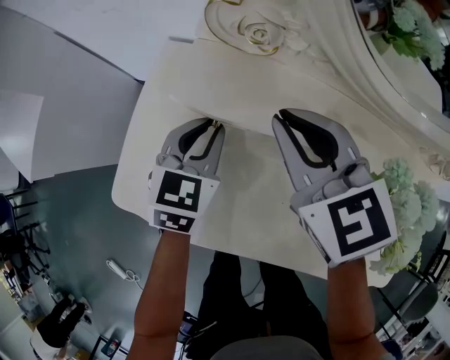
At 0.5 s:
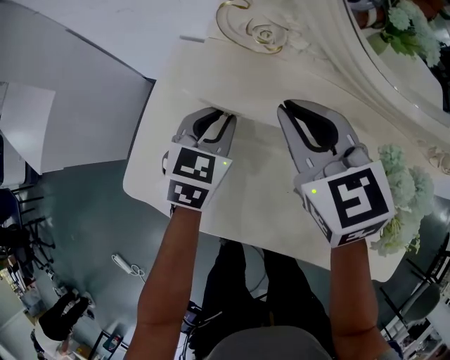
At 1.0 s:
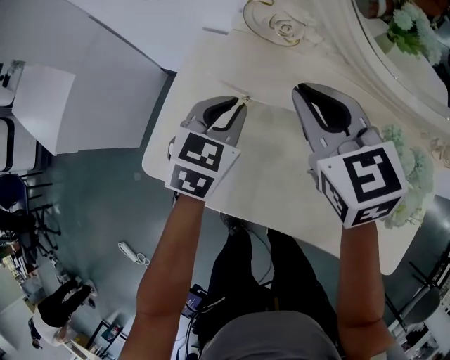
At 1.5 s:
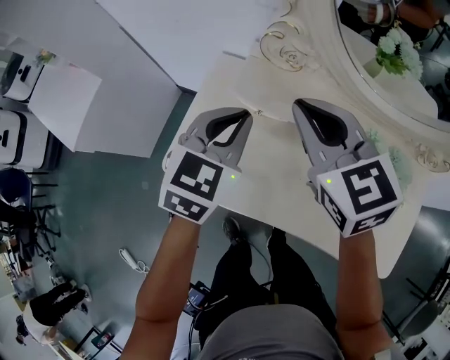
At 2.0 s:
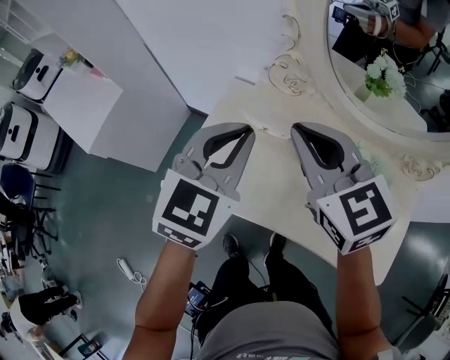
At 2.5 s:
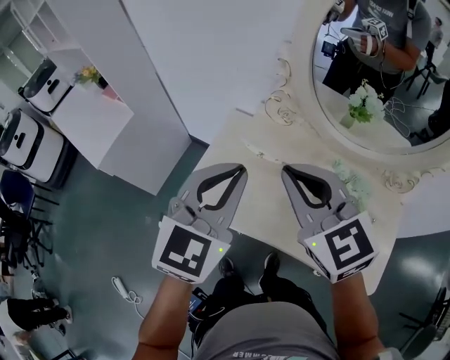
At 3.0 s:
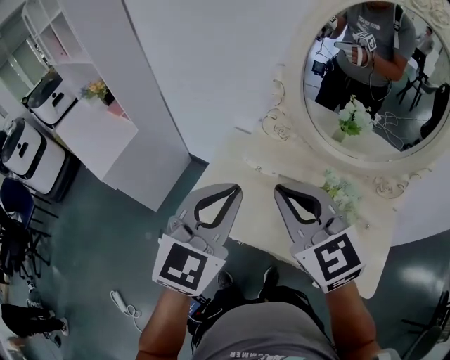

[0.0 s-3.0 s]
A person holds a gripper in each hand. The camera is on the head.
0.0 to 1.5 s: The two grippers go roughly 15 cm upward.
1.5 to 3.0 s: The right gripper travels backward and upward by some 25 cm. Meanwhile the left gripper is displaced upward and backward by approximately 30 cm, and rotates approximately 20 degrees.

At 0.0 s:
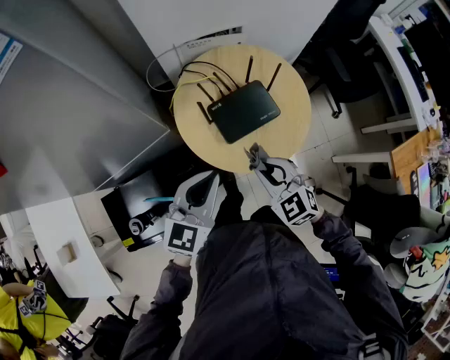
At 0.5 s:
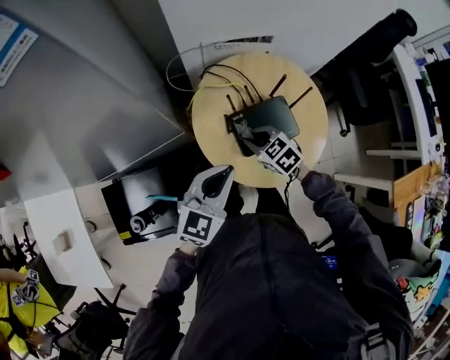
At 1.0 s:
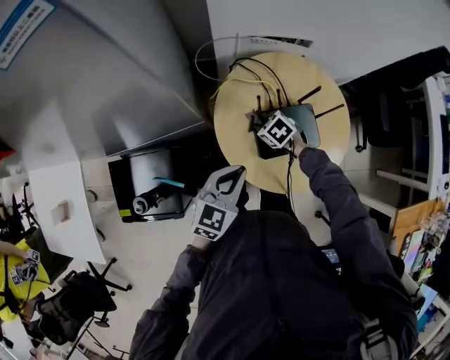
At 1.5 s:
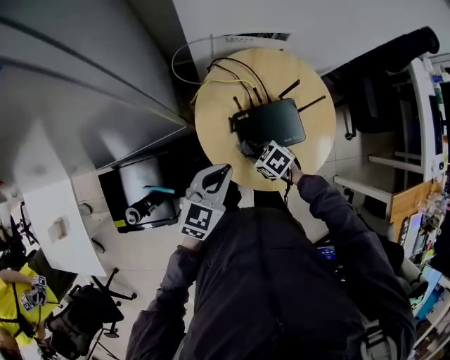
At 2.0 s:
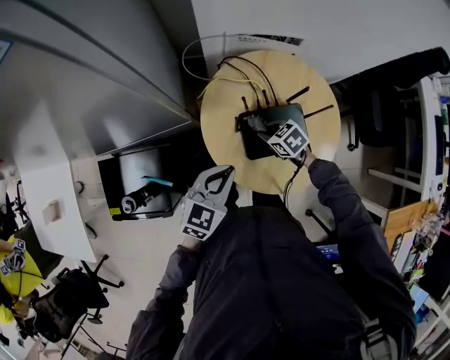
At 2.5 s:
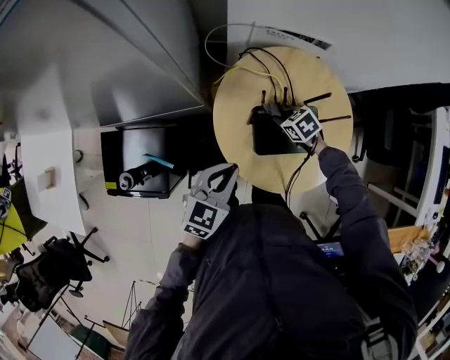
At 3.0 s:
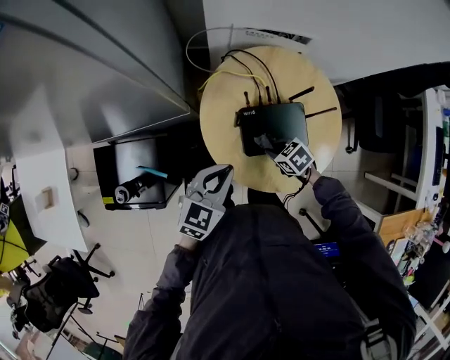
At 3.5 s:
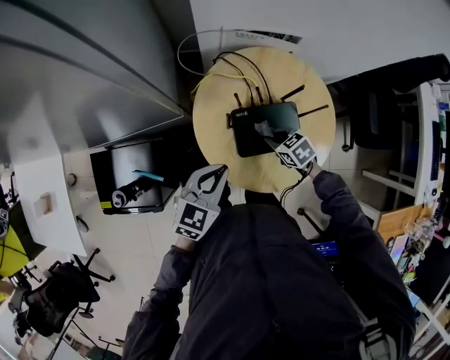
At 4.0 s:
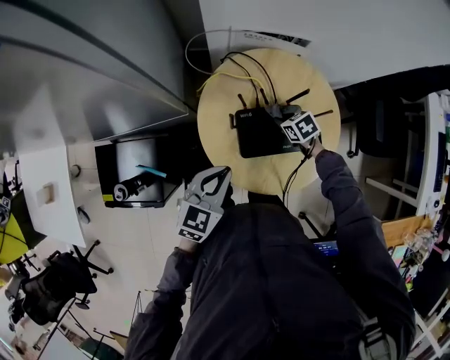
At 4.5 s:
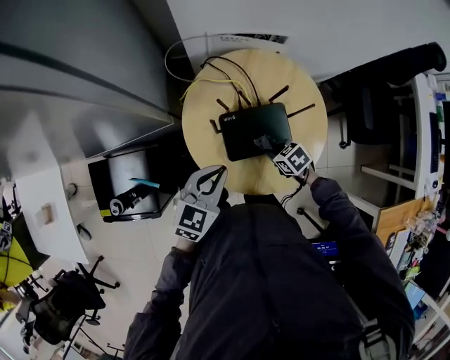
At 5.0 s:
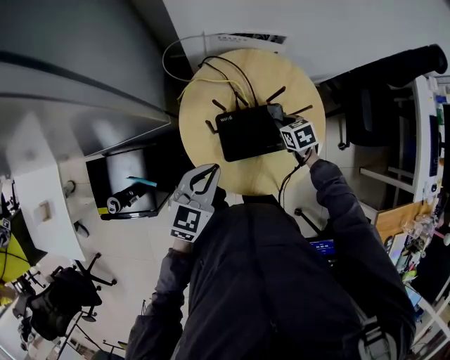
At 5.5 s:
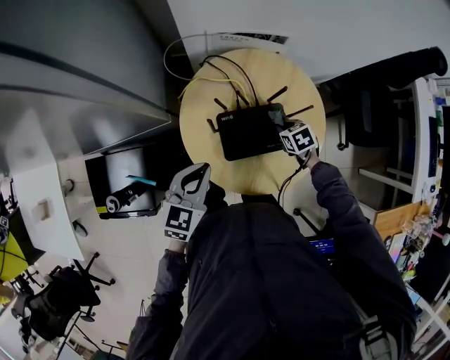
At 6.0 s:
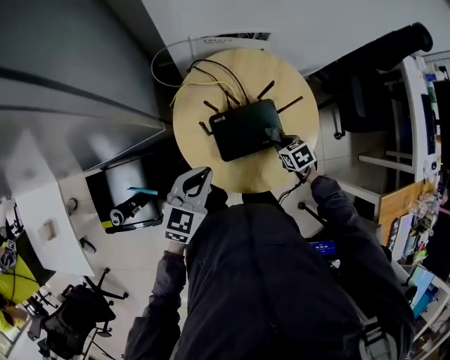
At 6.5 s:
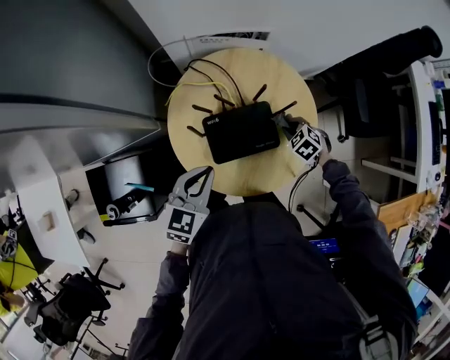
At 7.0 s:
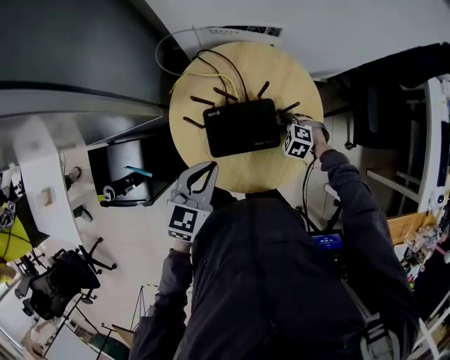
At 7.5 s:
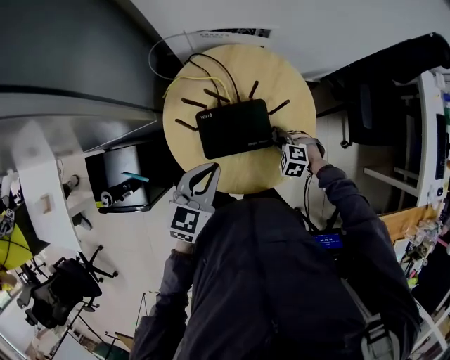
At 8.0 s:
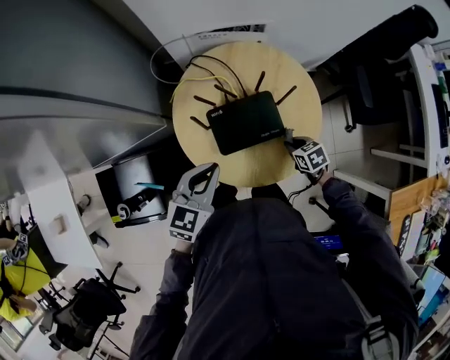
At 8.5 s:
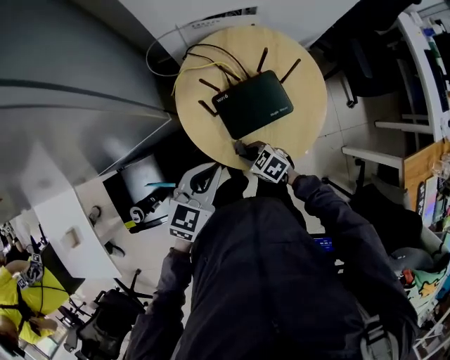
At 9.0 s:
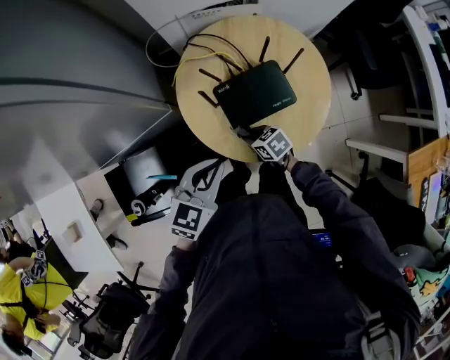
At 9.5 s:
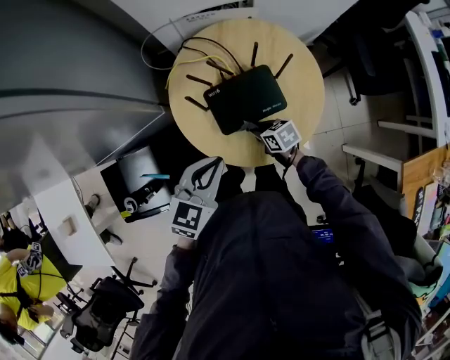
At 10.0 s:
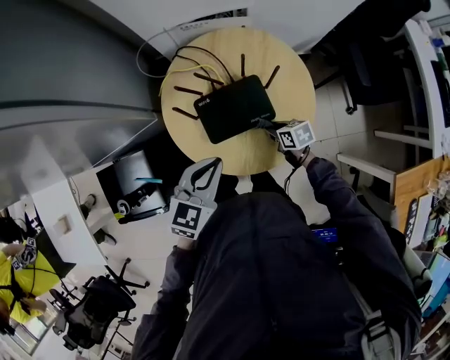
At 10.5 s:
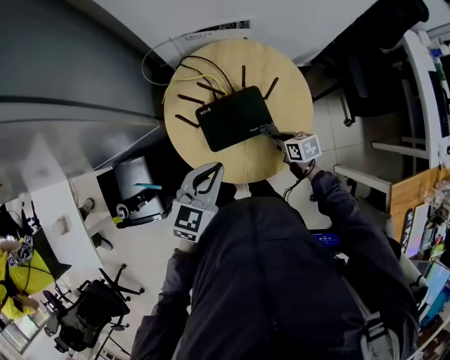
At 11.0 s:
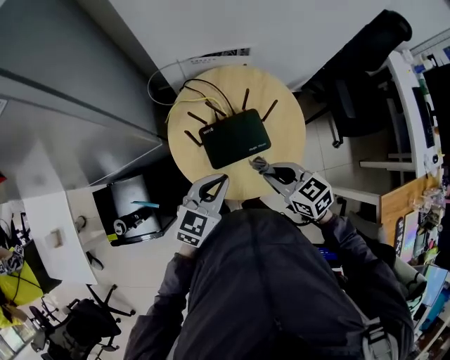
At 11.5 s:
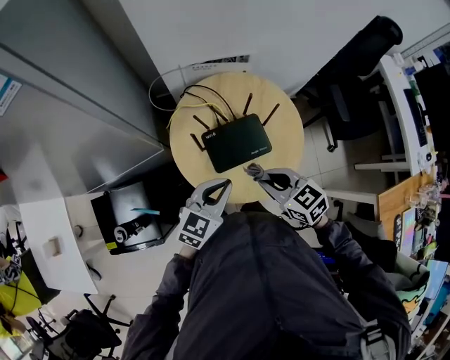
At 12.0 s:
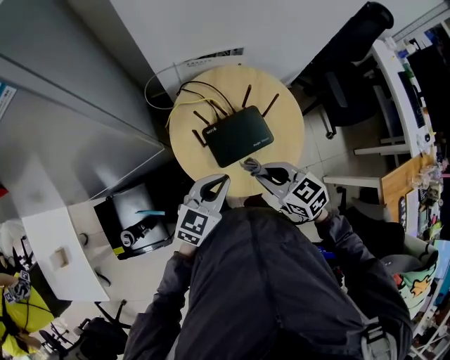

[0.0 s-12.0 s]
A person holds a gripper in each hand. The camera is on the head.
0.0 to 2.0 s: The left gripper shifts some 10 cm downward; the right gripper moves approximately 25 cm, and swivels approximately 40 degrees.
2.0 to 4.0 s: The right gripper changes place by some 10 cm.
4.0 to 6.0 s: The right gripper moves forward and backward over roughly 10 cm, changing direction 2 times.
8.0 to 10.0 s: The right gripper travels to the left and back again, some 25 cm each way.
10.0 to 12.0 s: The right gripper is displaced upward and to the left by roughly 25 cm, and swivels approximately 30 degrees.

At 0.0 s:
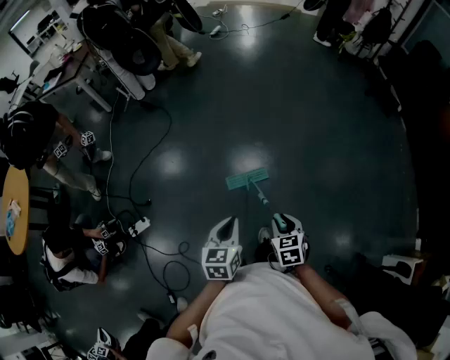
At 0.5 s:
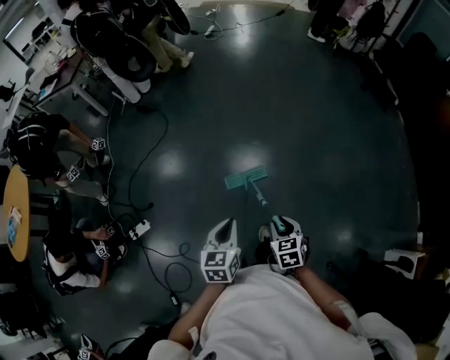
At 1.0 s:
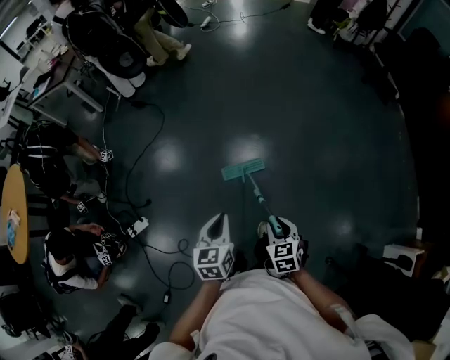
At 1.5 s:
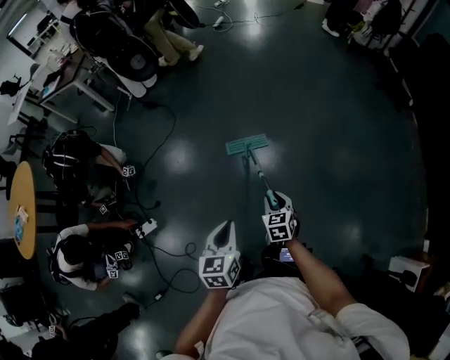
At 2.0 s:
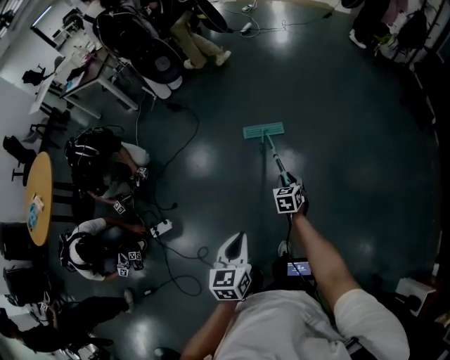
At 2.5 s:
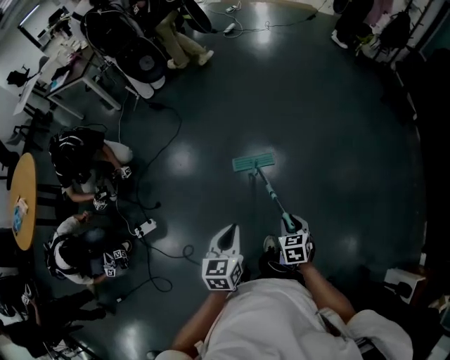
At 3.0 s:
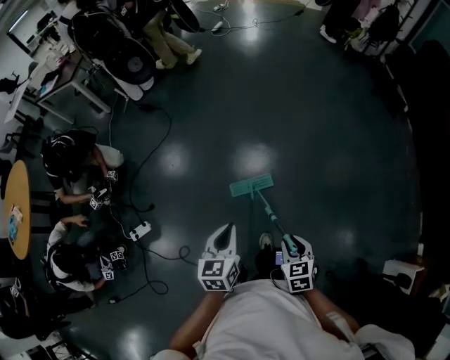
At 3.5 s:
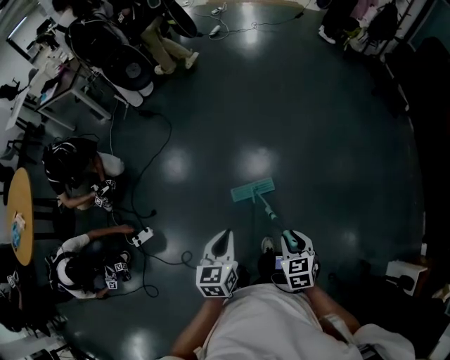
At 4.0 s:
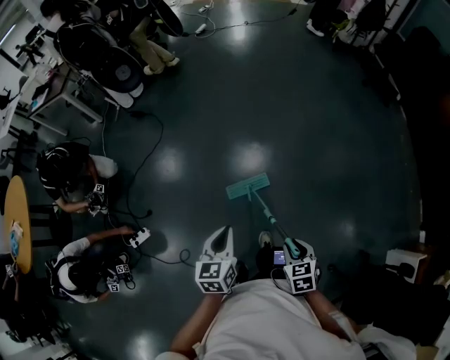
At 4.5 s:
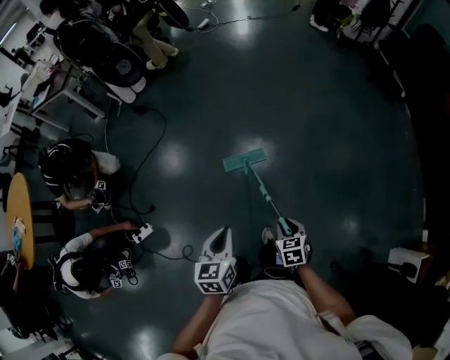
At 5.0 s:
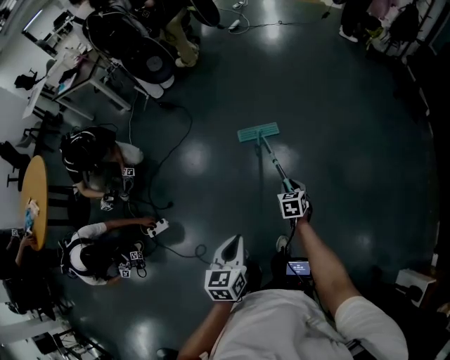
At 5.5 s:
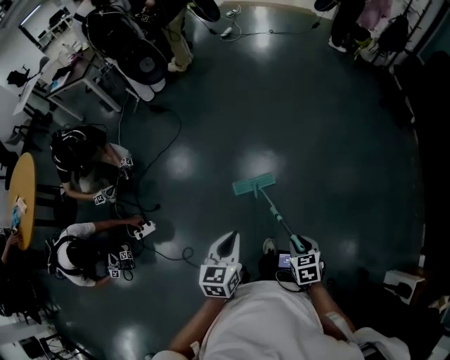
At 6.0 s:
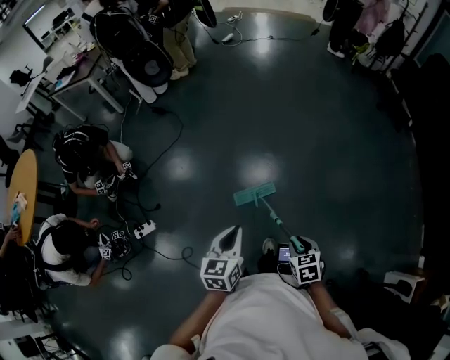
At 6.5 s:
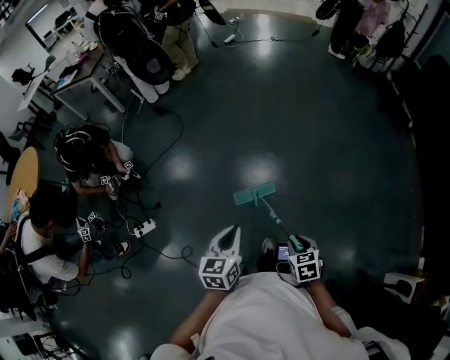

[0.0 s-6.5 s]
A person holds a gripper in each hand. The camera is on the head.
0.0 to 2.0 s: The right gripper shifts roughly 30 cm forward and downward, while the left gripper moves forward, roughly 5 cm.
2.0 to 4.5 s: The right gripper moves forward and backward over roughly 30 cm, changing direction 3 times.
4.5 to 6.5 s: The right gripper moves upward, roughly 5 cm, and reaches approximately 20 cm forward, then returns.

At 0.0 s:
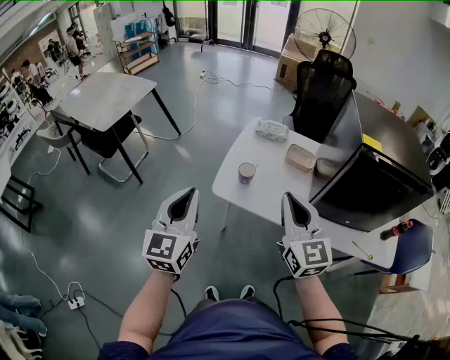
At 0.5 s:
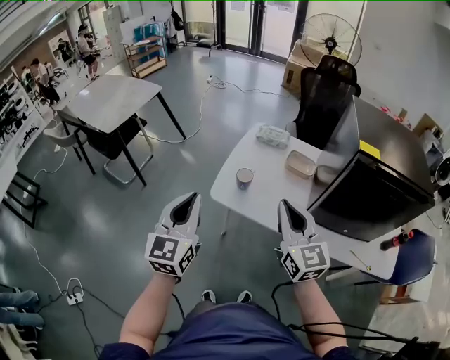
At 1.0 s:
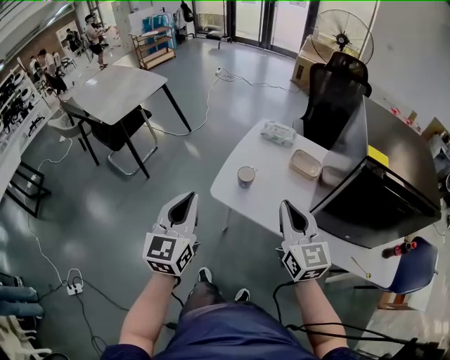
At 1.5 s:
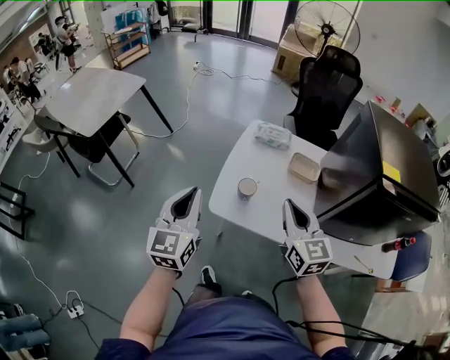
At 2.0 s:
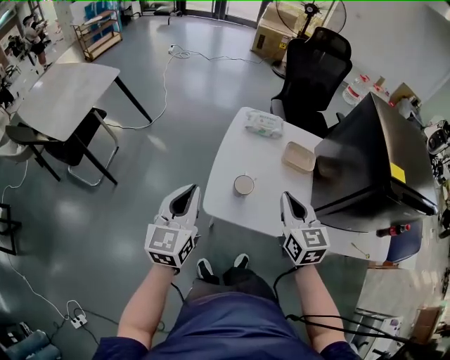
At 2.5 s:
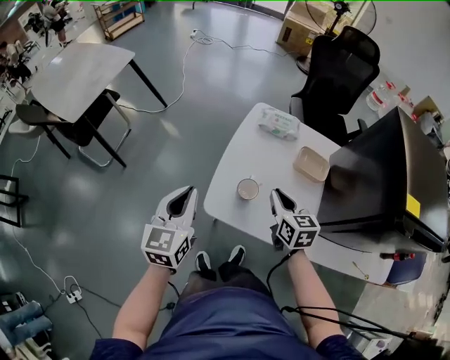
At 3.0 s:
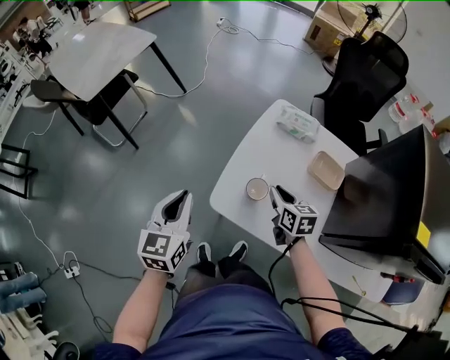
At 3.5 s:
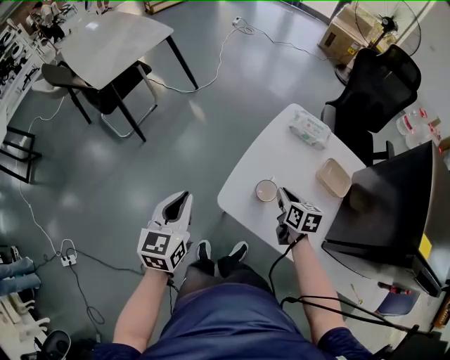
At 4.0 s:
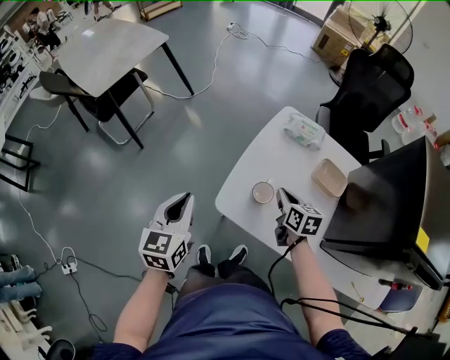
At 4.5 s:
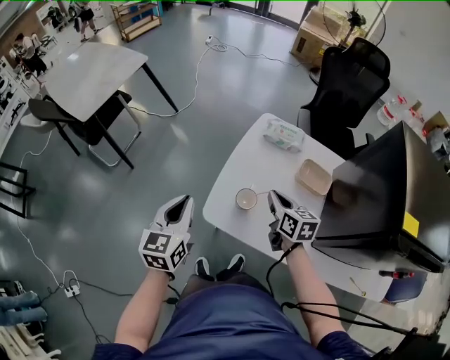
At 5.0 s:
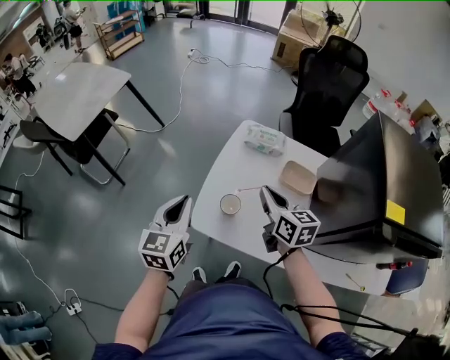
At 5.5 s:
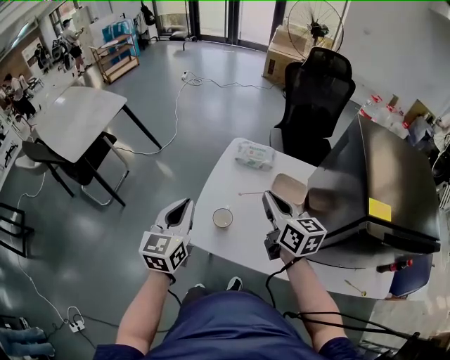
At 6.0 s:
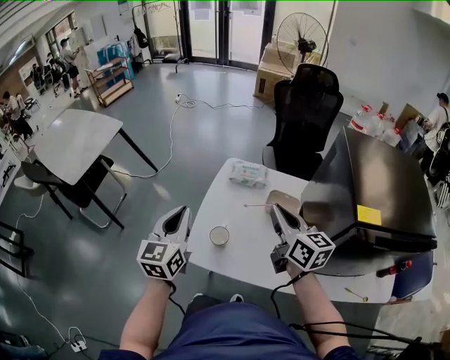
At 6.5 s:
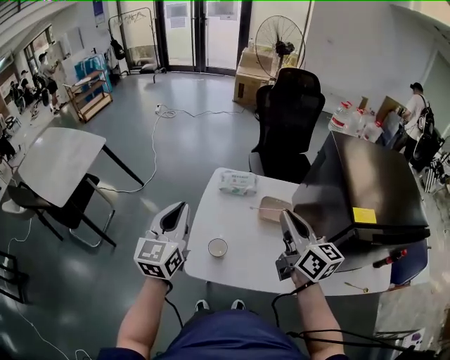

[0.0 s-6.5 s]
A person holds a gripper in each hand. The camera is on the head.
0.0 to 2.0 s: The grippers both shift forward and downward by some 20 cm. The right gripper changes its angle by roughly 20 degrees.
2.0 to 4.5 s: The right gripper heads downward and forward, covering approximately 15 cm, and turns by some 30 degrees; the left gripper is displaced downward by about 5 cm.
4.5 to 6.5 s: The left gripper moves upward, forward and to the right, roughly 20 cm, and rotates some 20 degrees, while the right gripper heads upward and to the right, covering roughly 25 cm, and tilts its fingers roughly 30 degrees upward.
